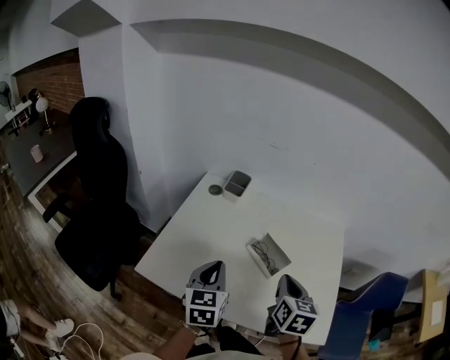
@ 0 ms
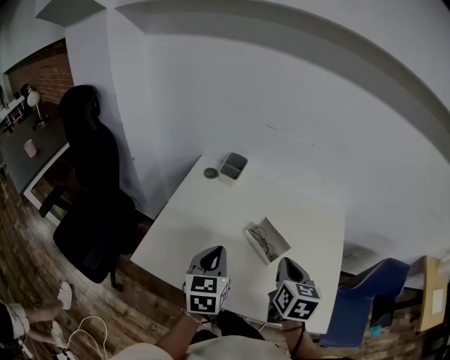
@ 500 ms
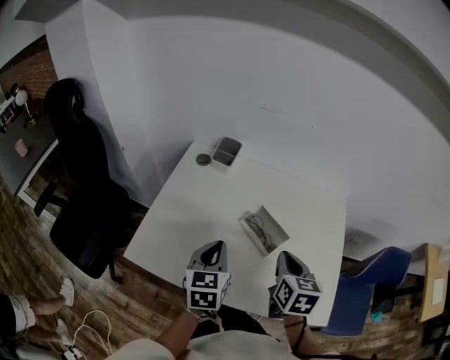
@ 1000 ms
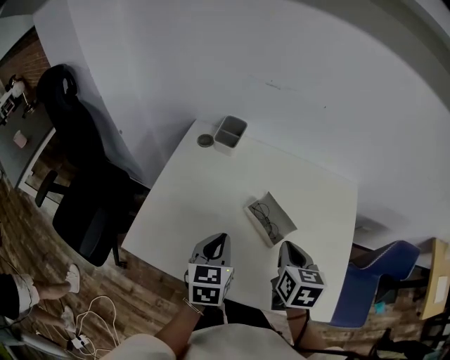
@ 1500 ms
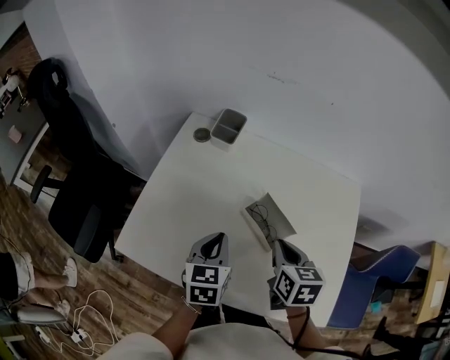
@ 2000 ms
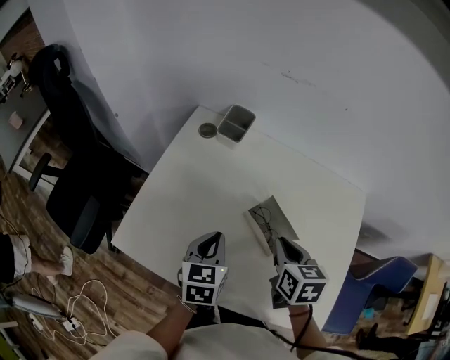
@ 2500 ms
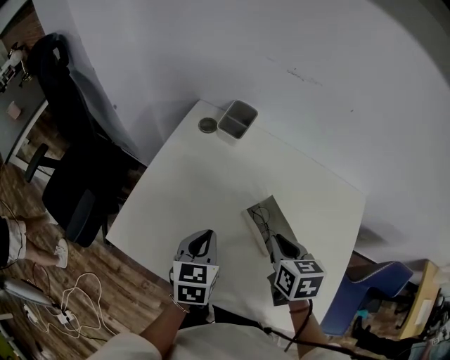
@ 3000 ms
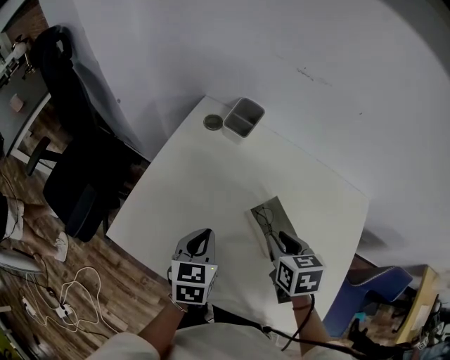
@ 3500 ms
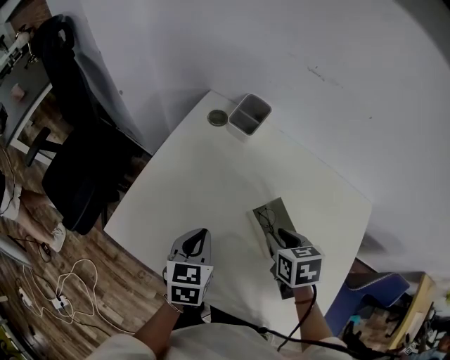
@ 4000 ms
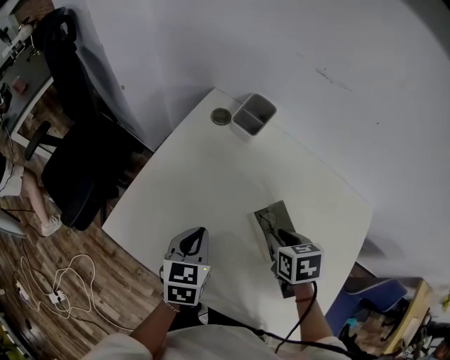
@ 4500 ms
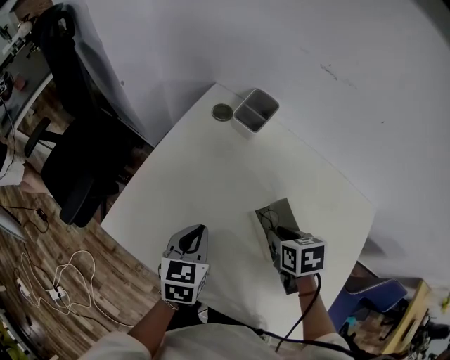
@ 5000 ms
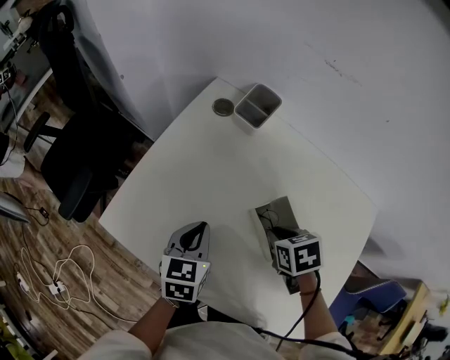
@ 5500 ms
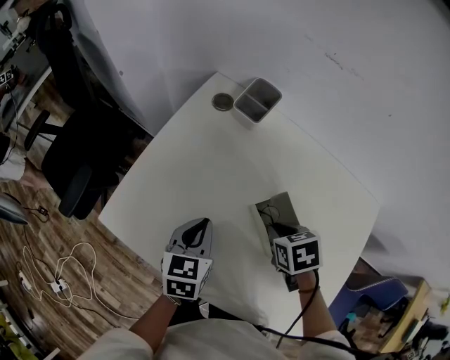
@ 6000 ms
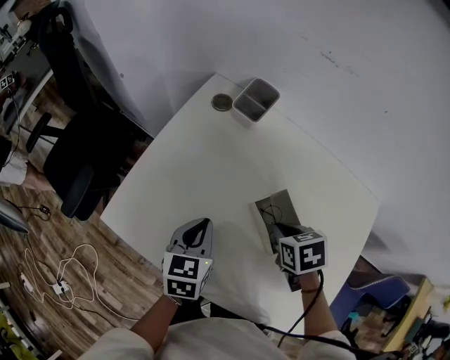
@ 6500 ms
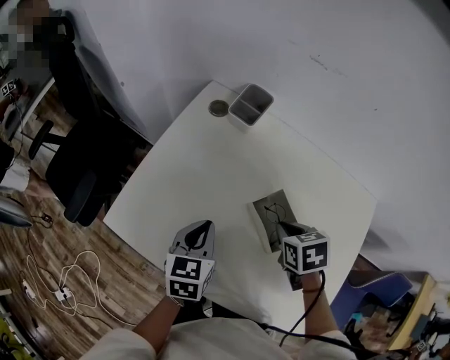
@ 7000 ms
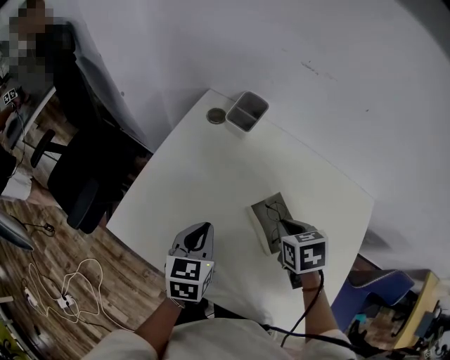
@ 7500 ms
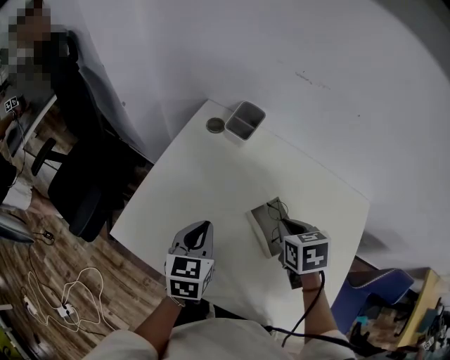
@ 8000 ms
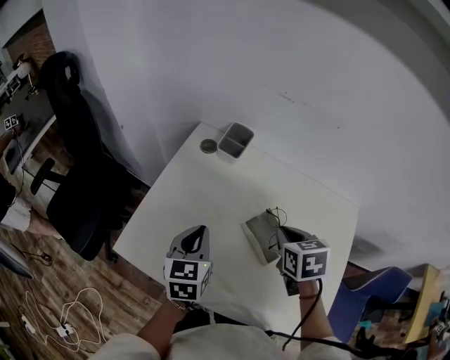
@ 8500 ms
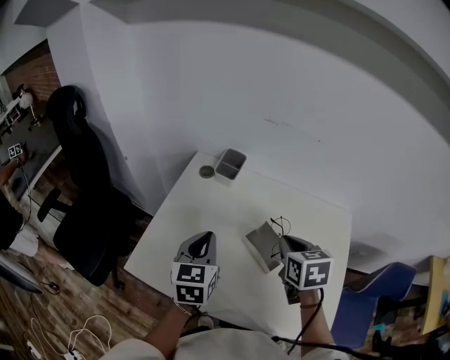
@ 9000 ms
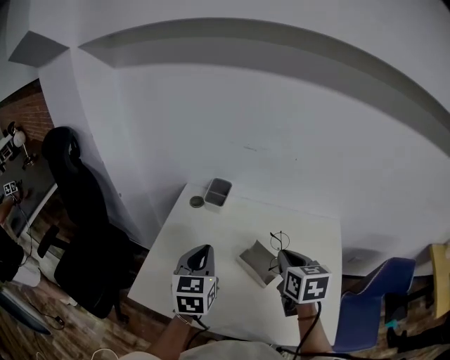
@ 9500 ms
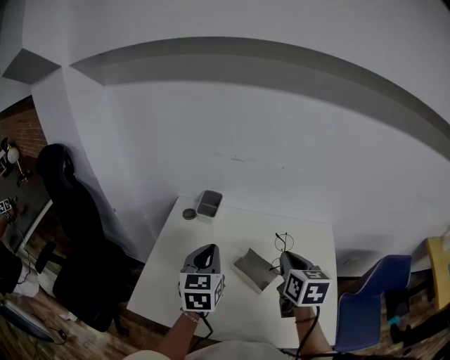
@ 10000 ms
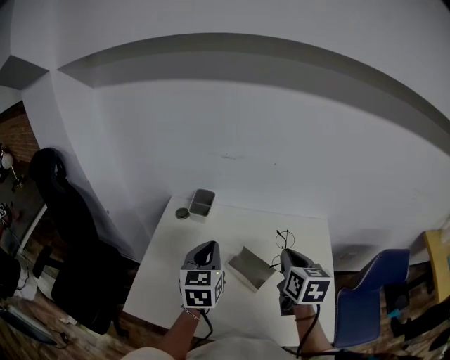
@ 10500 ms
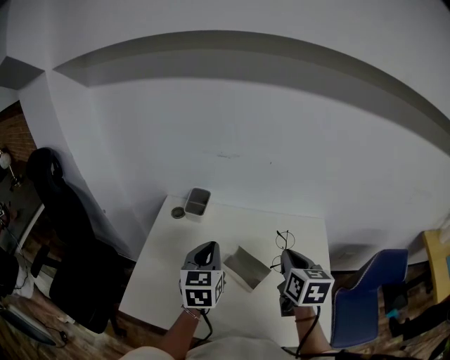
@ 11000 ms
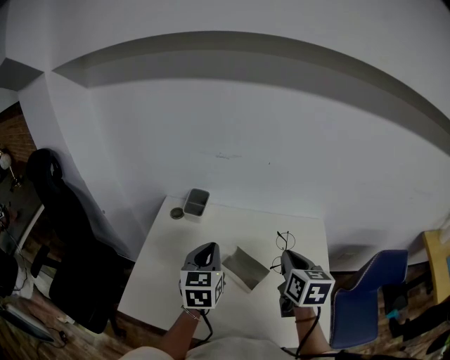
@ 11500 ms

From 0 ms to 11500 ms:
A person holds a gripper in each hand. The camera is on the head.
From 0 ms to 2000 ms: The right gripper moves downward and forward, approximately 10 cm, while the left gripper shifts roughly 10 cm downward.
From 2000 ms to 4000 ms: The left gripper changes place by roughly 5 cm. Meanwhile the right gripper is displaced downward and forward by about 10 cm, rotates roughly 30 degrees, and opens up.
From 4000 ms to 7500 ms: There are only small adjustments of the grippers.
From 7500 ms to 9500 ms: The two grippers go roughly 15 cm upward. The left gripper changes its angle by about 20 degrees. Meanwhile the right gripper changes its angle by about 40 degrees.
From 9500 ms to 11500 ms: Both grippers travel together to the right, about 5 cm.

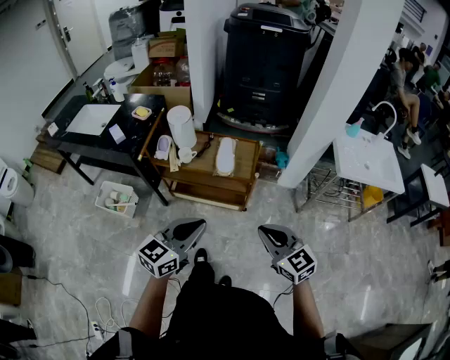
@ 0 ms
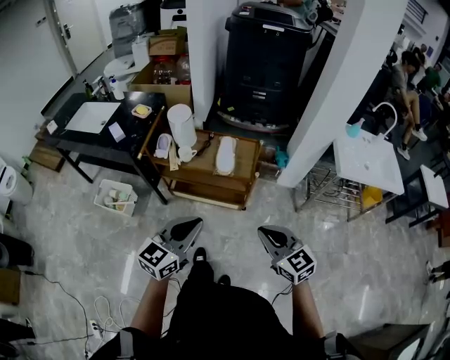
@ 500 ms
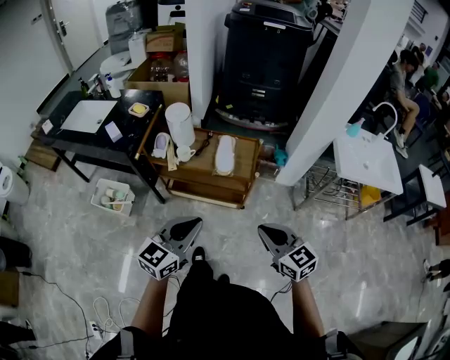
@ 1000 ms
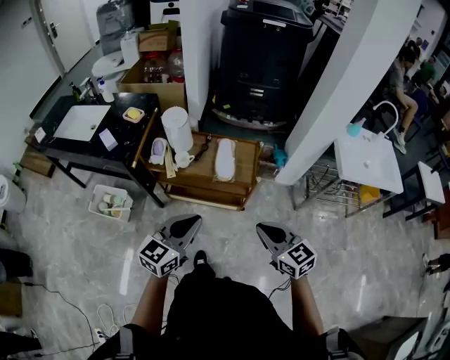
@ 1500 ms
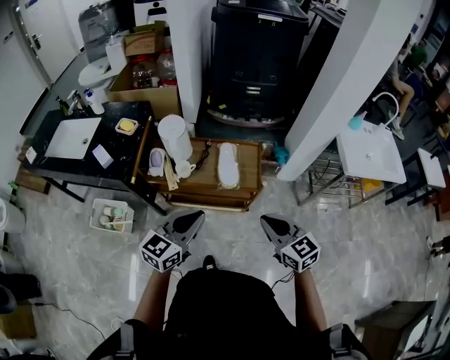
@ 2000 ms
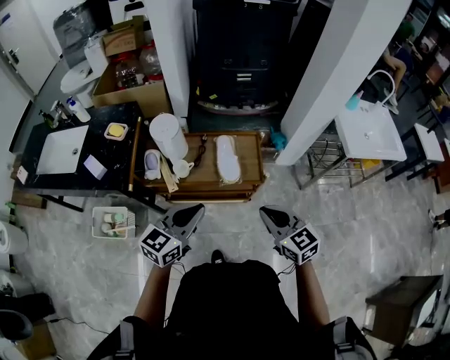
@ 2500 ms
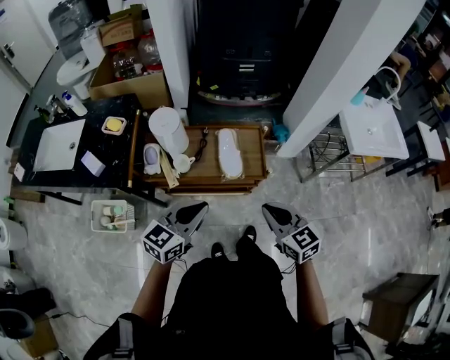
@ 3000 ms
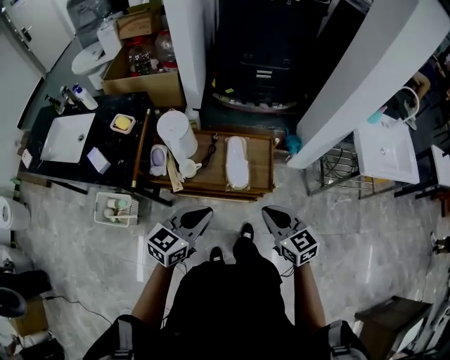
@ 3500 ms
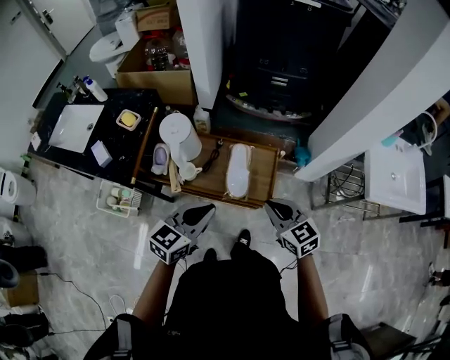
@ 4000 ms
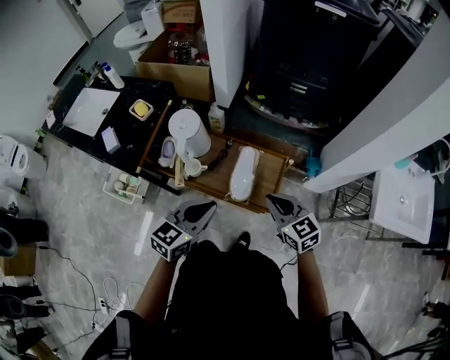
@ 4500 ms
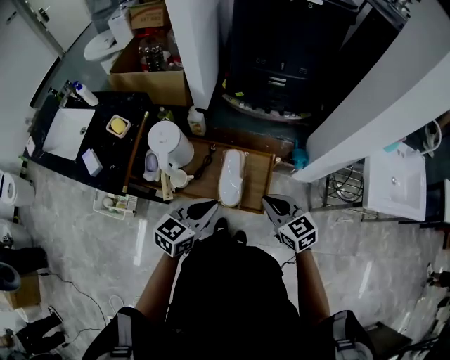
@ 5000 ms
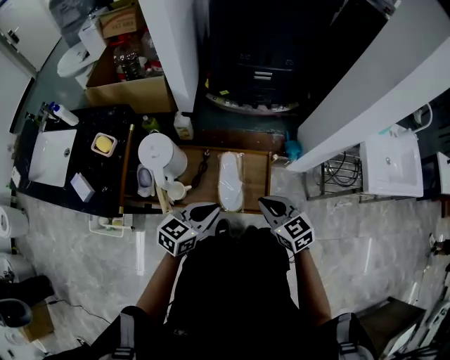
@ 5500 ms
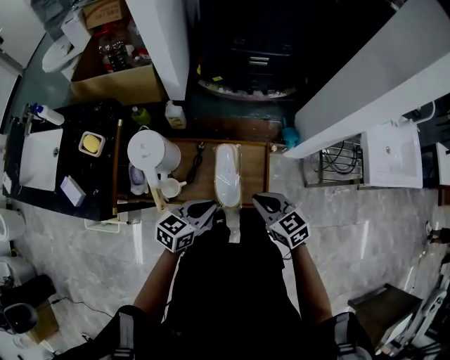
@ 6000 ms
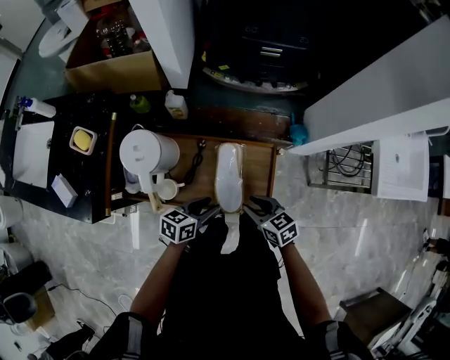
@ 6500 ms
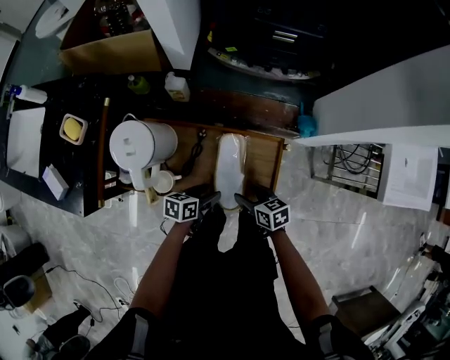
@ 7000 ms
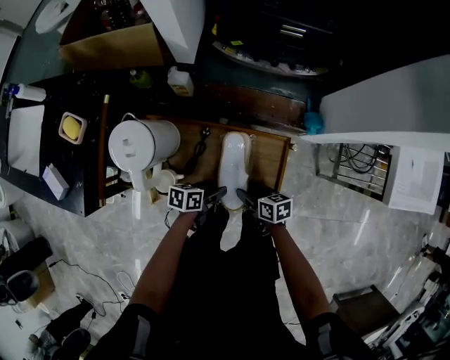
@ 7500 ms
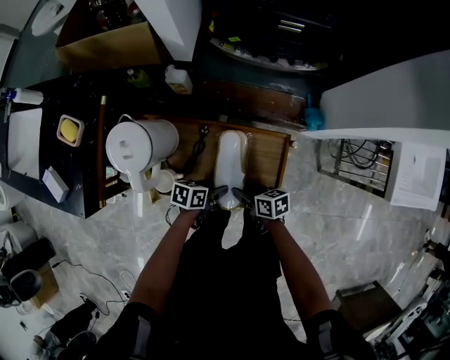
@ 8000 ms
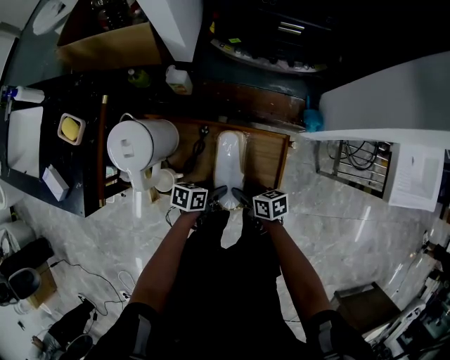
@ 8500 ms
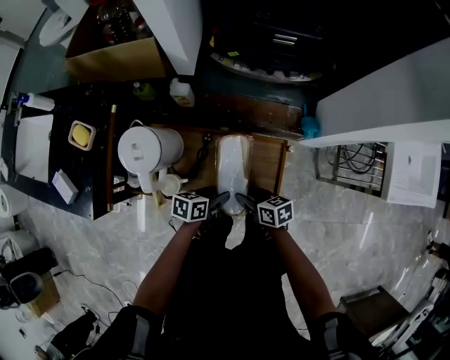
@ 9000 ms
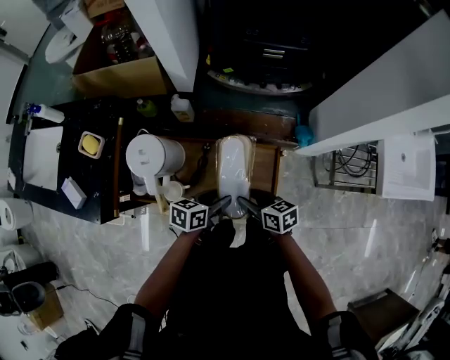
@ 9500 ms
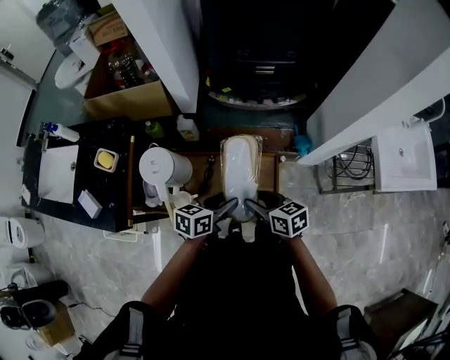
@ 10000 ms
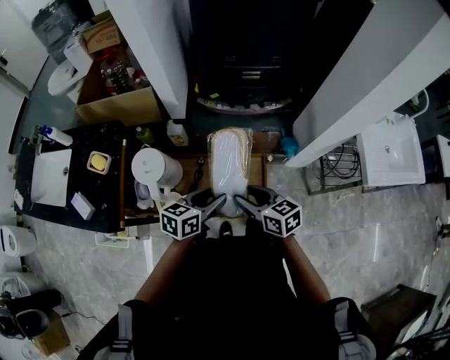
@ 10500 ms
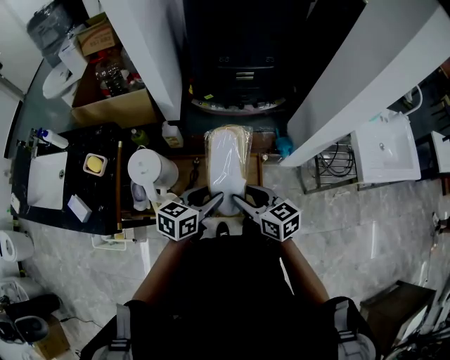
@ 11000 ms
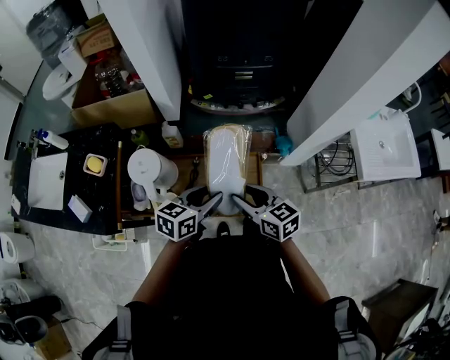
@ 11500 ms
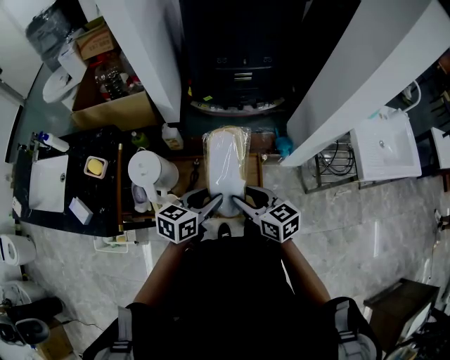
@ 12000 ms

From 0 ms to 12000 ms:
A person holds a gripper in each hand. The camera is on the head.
From 0 ms to 2000 ms: Both grippers move forward and to the left, some 15 cm.
From 2000 ms to 4000 ms: The grippers both shift forward by approximately 15 cm.
From 4000 ms to 6000 ms: The left gripper heads downward and forward, covering some 15 cm, while the right gripper is displaced forward and downward by approximately 10 cm.
From 6000 ms to 8000 ms: Both grippers move downward, roughly 25 cm. The right gripper turns by roughly 40 degrees, and opens, while the left gripper turns by approximately 40 degrees, and opens up.
From 8000 ms to 10000 ms: Both grippers travel together upward, approximately 20 cm. The right gripper changes its angle by approximately 20 degrees; the left gripper swivels approximately 30 degrees.
From 10000 ms to 12000 ms: Both grippers move upward, about 5 cm.

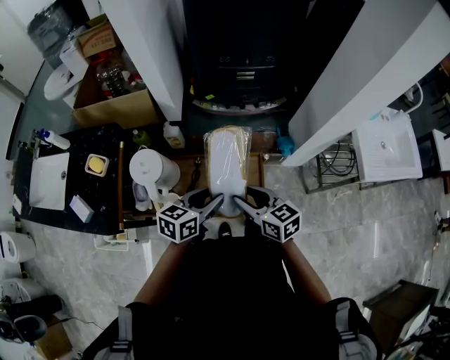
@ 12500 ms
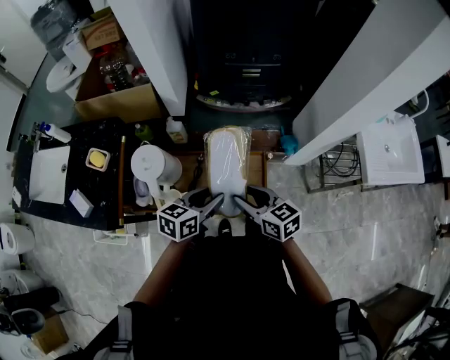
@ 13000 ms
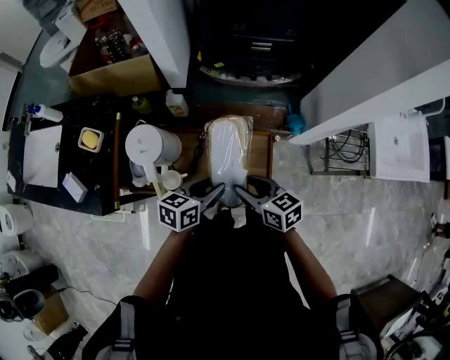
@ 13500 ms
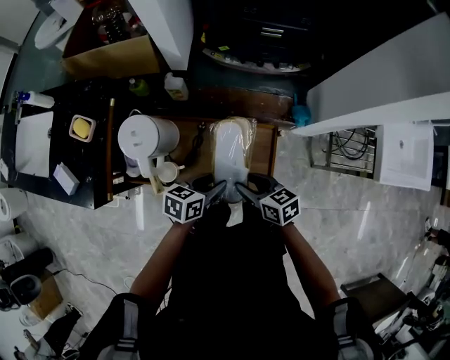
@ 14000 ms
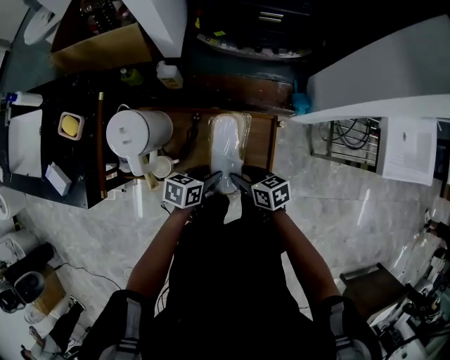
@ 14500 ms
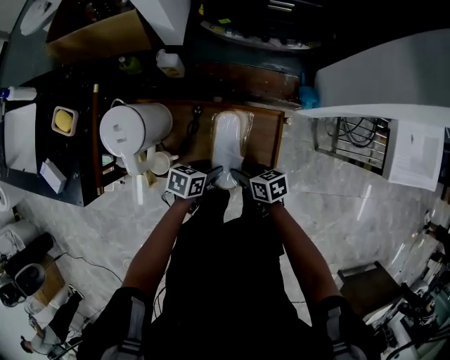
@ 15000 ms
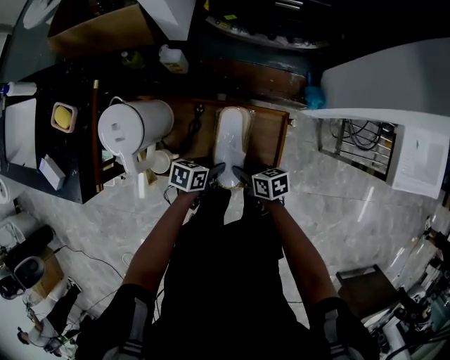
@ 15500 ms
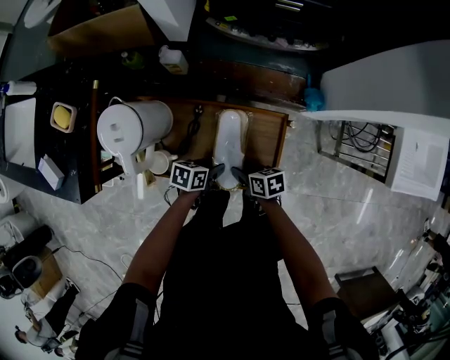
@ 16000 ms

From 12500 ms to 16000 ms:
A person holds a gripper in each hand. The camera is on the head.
From 12500 ms to 14500 ms: The grippers both shift downward by about 20 cm. The right gripper rotates approximately 30 degrees. Meanwhile the left gripper swivels roughly 20 degrees.
From 14500 ms to 16000 ms: The two grippers go roughly 10 cm downward.
